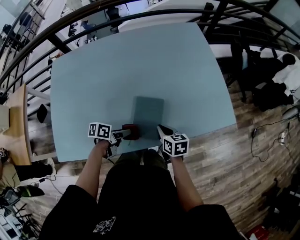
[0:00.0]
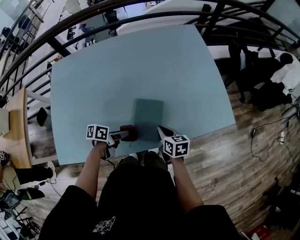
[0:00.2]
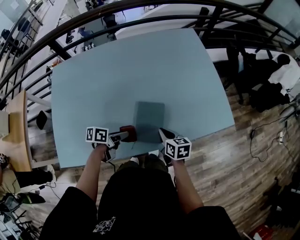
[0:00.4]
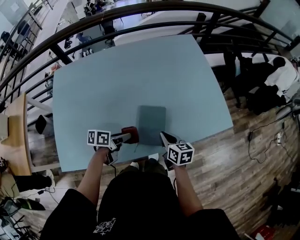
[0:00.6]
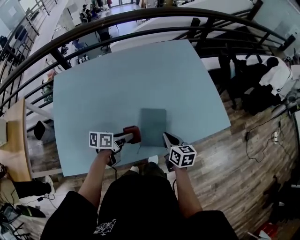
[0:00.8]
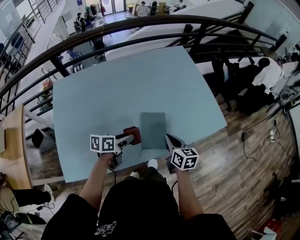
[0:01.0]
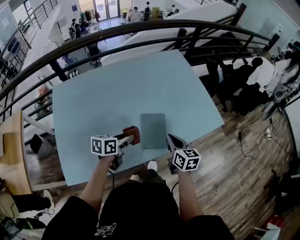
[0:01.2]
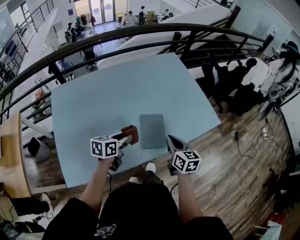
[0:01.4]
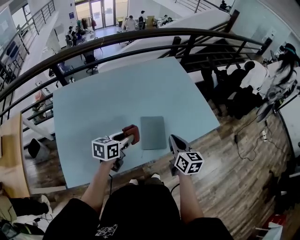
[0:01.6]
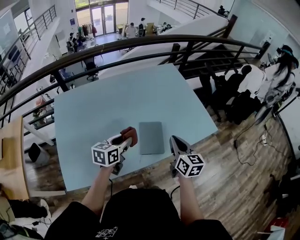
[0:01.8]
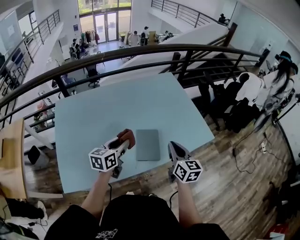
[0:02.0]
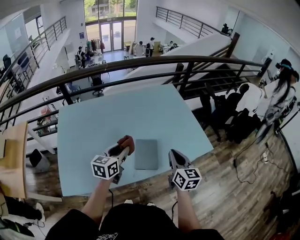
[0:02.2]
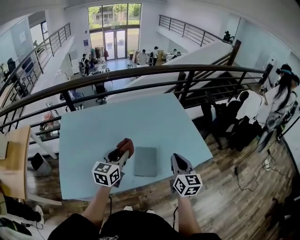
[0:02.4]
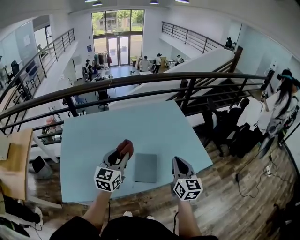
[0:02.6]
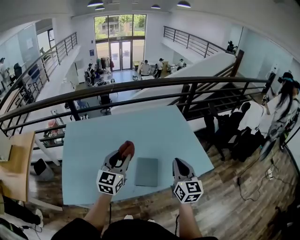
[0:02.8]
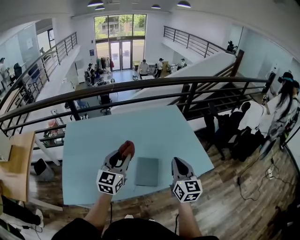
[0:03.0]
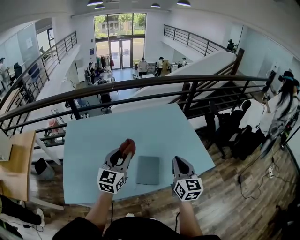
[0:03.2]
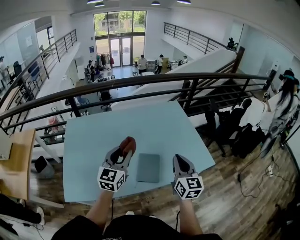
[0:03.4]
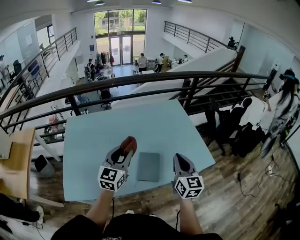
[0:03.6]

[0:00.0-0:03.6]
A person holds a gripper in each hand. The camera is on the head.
0:00.0 to 0:01.8: The two grippers go about 20 cm upward. The left gripper turns by about 50 degrees. Meanwhile the right gripper changes its angle by some 40 degrees.
0:01.8 to 0:03.6: The grippers both shift upward by roughly 15 cm. The left gripper changes its angle by approximately 40 degrees.

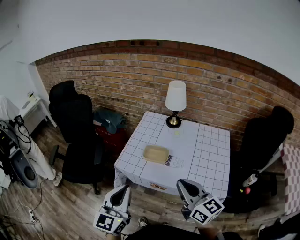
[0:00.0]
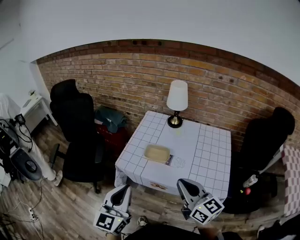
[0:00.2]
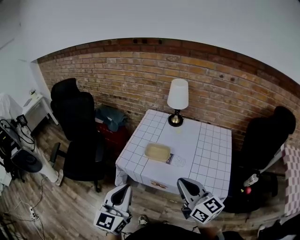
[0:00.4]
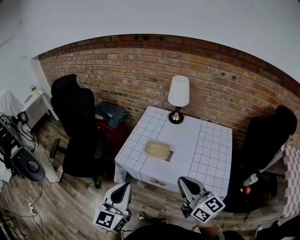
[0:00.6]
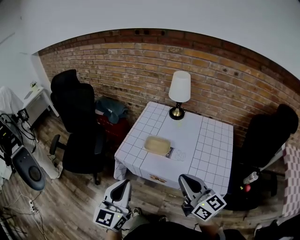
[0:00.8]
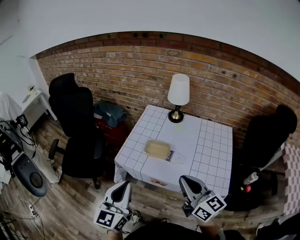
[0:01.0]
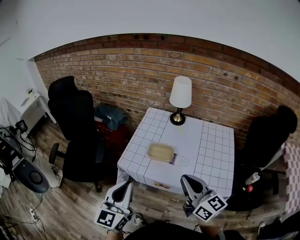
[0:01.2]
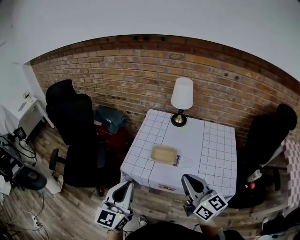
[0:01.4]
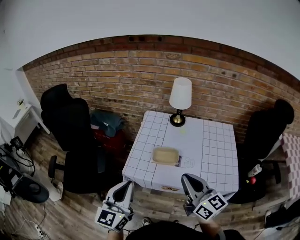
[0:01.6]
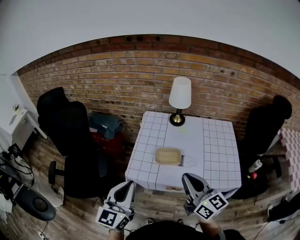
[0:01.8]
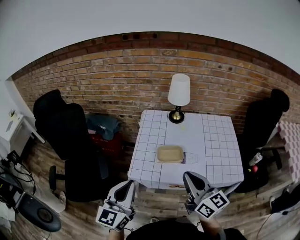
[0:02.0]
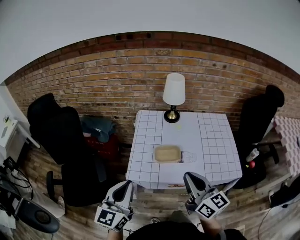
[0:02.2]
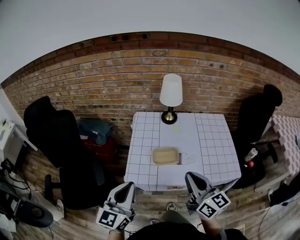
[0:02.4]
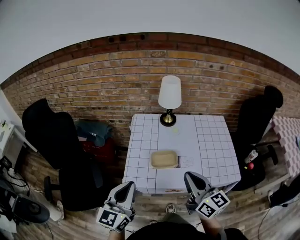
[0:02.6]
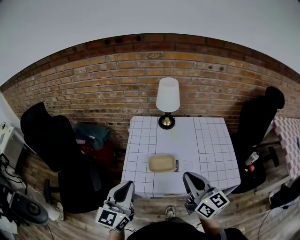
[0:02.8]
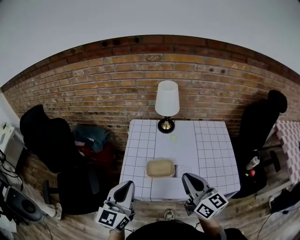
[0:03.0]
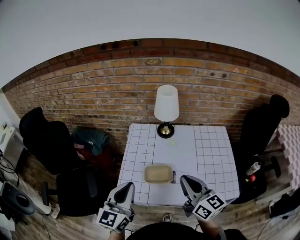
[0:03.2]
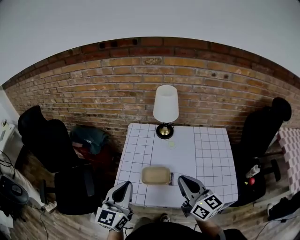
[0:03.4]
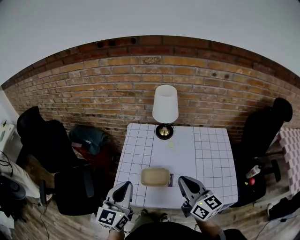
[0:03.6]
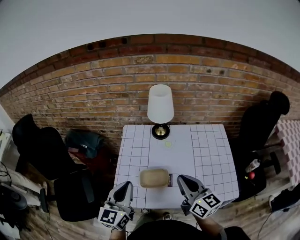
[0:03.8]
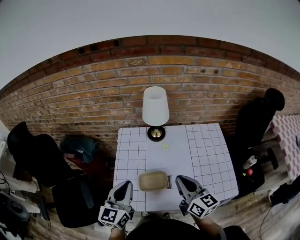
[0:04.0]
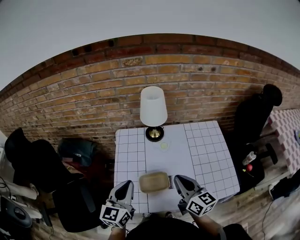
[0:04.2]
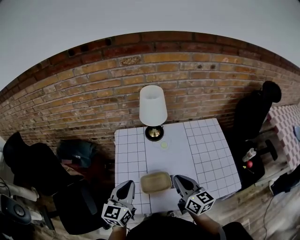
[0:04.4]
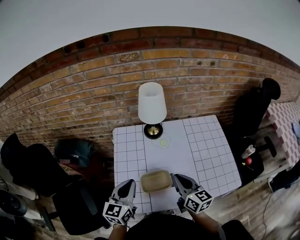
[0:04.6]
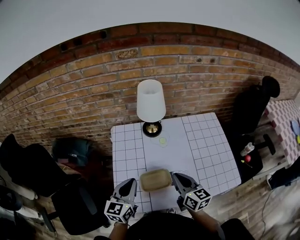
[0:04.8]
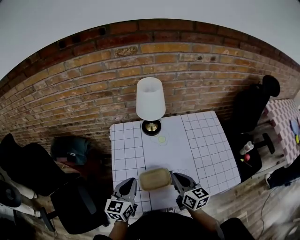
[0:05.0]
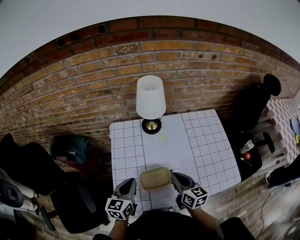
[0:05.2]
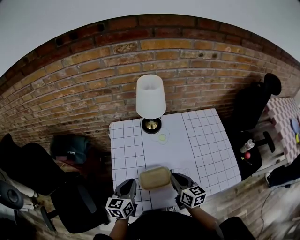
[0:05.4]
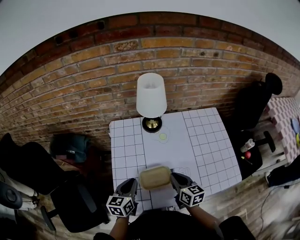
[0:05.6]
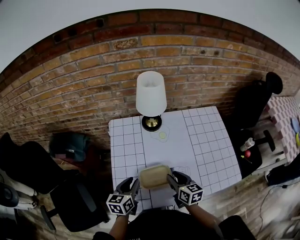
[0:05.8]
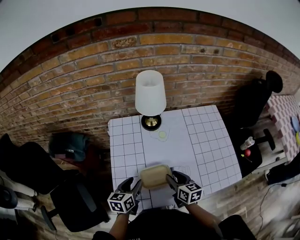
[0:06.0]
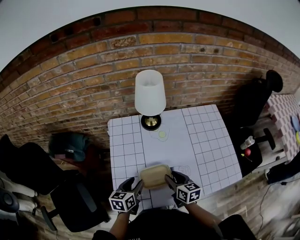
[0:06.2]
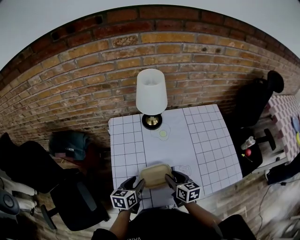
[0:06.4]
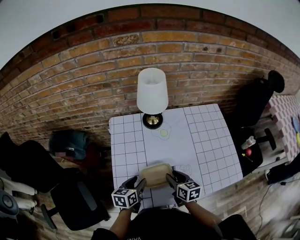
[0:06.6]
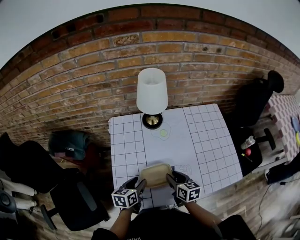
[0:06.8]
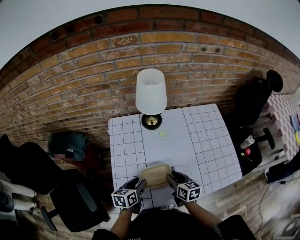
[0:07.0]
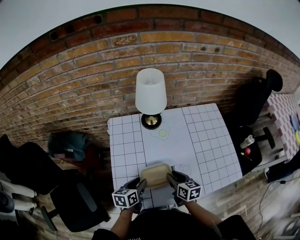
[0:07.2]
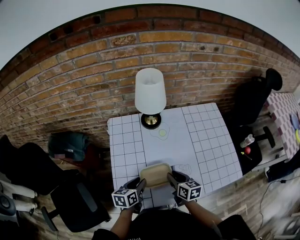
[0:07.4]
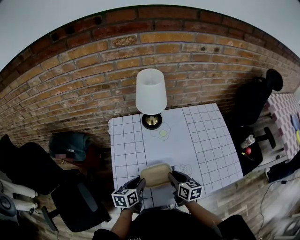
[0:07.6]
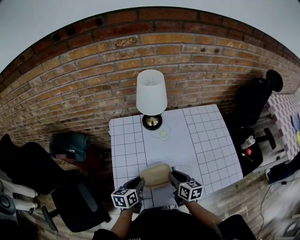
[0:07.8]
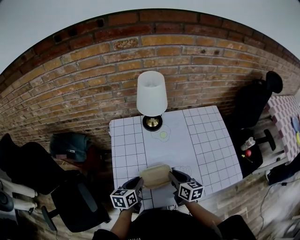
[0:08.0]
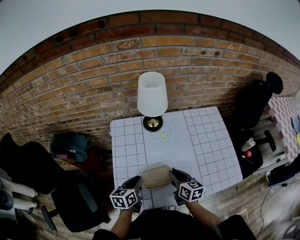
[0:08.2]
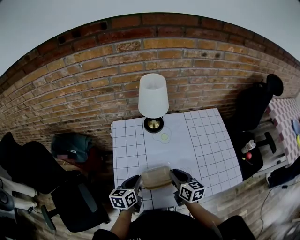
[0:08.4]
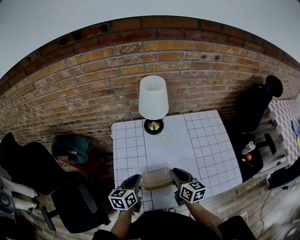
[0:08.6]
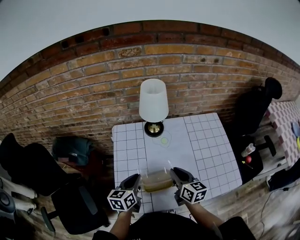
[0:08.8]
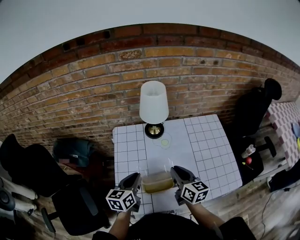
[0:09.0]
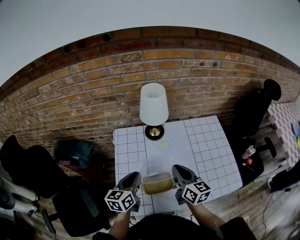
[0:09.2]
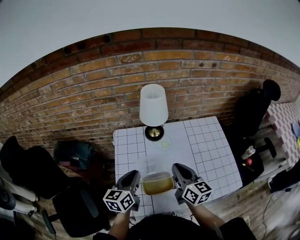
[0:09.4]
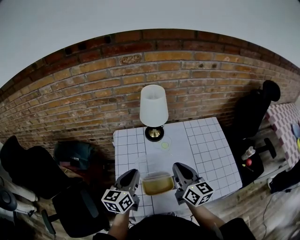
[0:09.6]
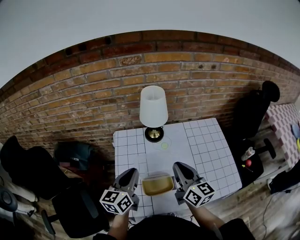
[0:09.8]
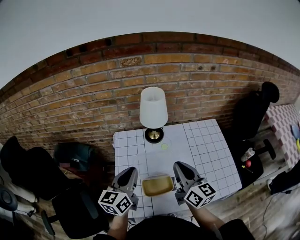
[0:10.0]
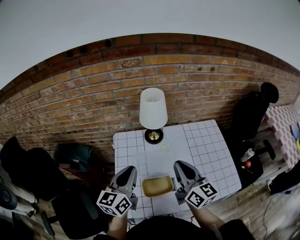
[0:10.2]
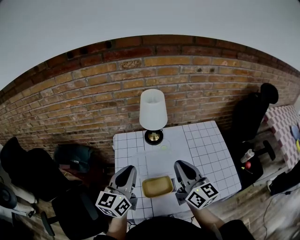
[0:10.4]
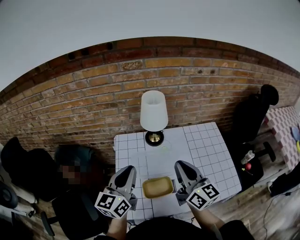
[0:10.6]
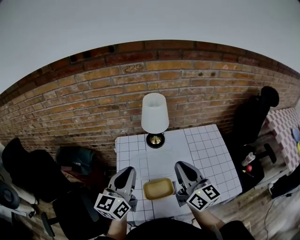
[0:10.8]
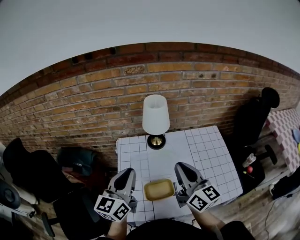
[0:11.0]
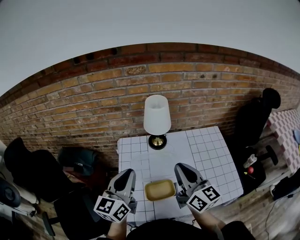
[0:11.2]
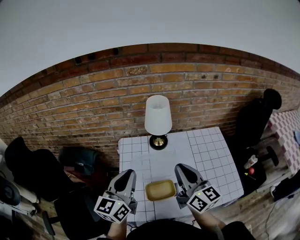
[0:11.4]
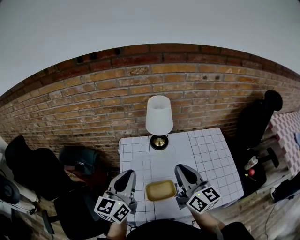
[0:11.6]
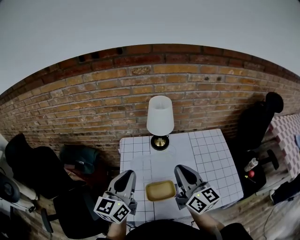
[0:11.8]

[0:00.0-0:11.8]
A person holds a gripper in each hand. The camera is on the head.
0:00.0 to 0:01.4: The right gripper moves approximately 5 cm, while the left gripper heads forward and to the left, covering approximately 10 cm.
0:01.4 to 0:03.0: Both grippers travel together forward, some 10 cm.
0:03.0 to 0:04.4: The grippers both shift forward and downward by about 15 cm.
0:04.4 to 0:06.0: The grippers both shift downward by roughly 15 cm. The left gripper swivels approximately 30 degrees, and opens its fingers. Meanwhile the right gripper swivels some 20 degrees, and opens.
0:06.0 to 0:07.4: The grippers stay close to where they were, moving slightly.
0:07.4 to 0:08.8: The two grippers go about 10 cm upward. The left gripper closes.
0:08.8 to 0:10.4: Both grippers travel together upward, about 15 cm. The left gripper changes its angle by some 30 degrees, while the right gripper rotates some 20 degrees.
0:10.4 to 0:11.8: The grippers make only small movements.

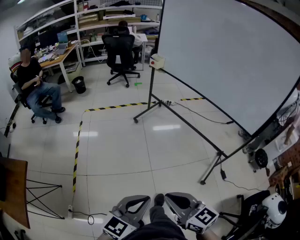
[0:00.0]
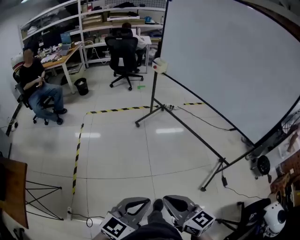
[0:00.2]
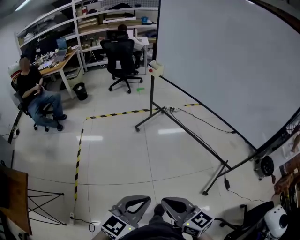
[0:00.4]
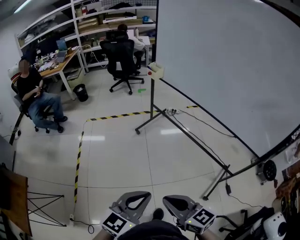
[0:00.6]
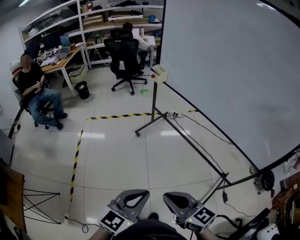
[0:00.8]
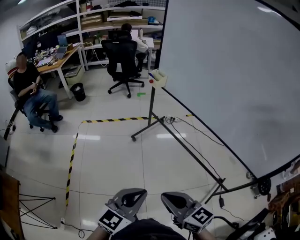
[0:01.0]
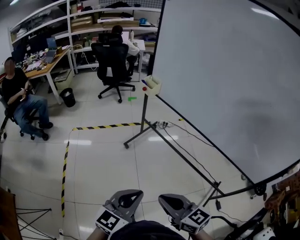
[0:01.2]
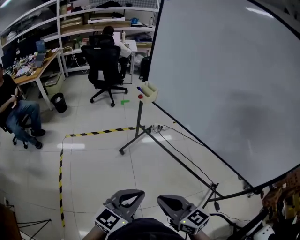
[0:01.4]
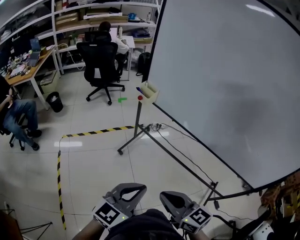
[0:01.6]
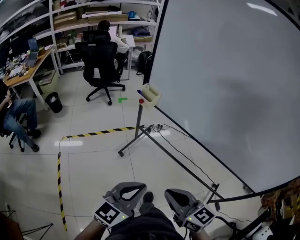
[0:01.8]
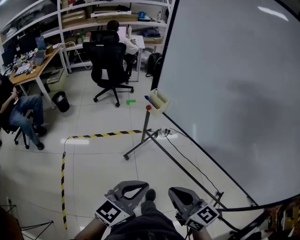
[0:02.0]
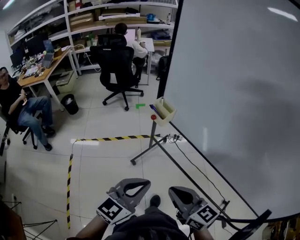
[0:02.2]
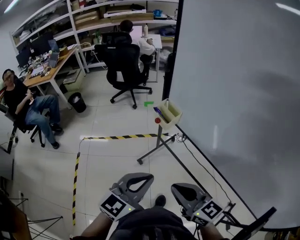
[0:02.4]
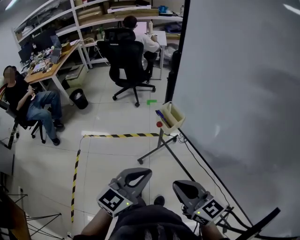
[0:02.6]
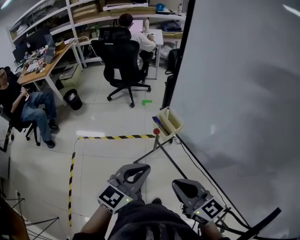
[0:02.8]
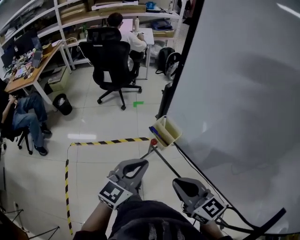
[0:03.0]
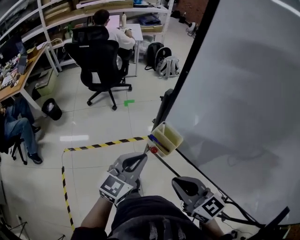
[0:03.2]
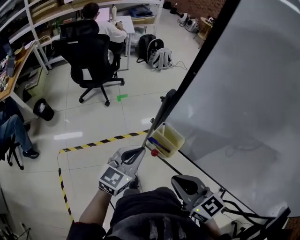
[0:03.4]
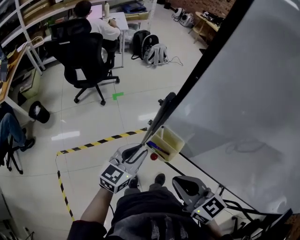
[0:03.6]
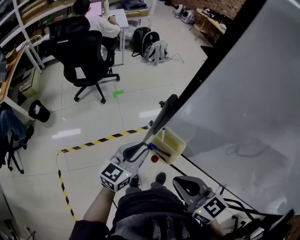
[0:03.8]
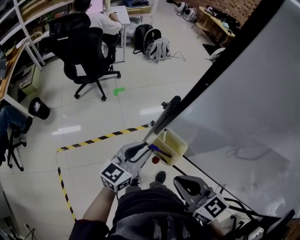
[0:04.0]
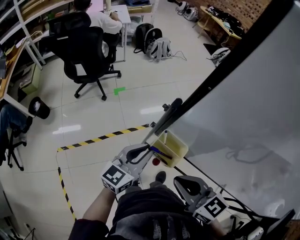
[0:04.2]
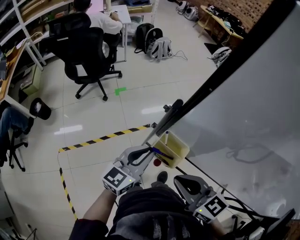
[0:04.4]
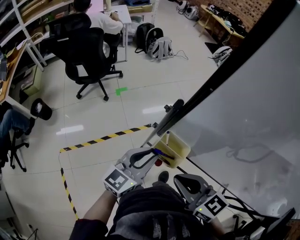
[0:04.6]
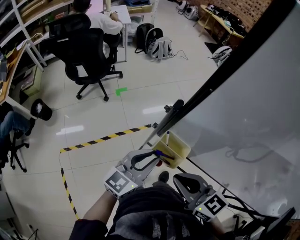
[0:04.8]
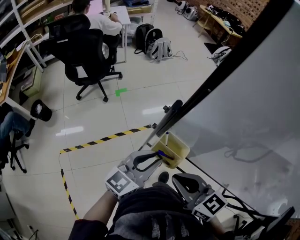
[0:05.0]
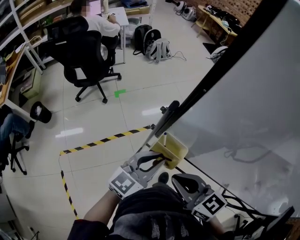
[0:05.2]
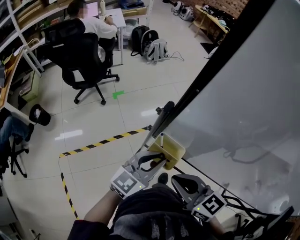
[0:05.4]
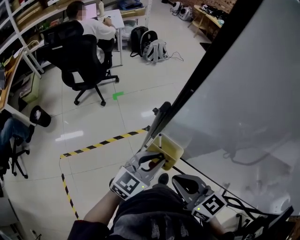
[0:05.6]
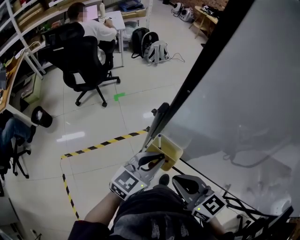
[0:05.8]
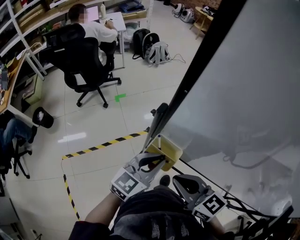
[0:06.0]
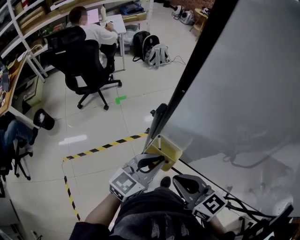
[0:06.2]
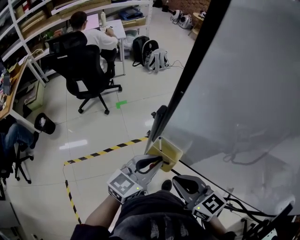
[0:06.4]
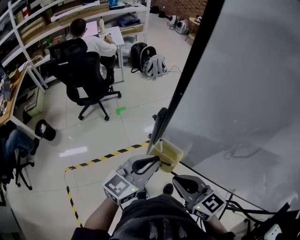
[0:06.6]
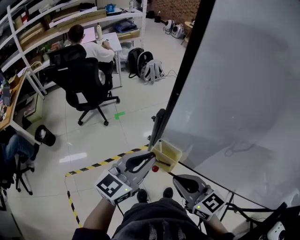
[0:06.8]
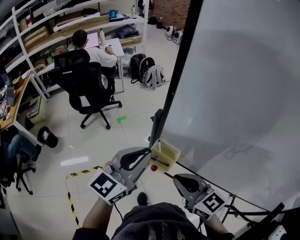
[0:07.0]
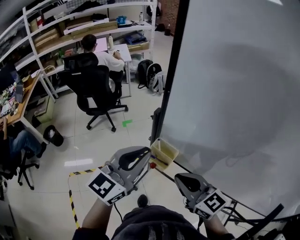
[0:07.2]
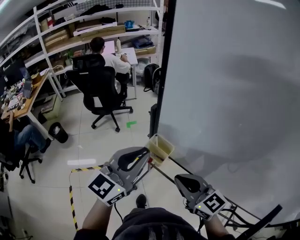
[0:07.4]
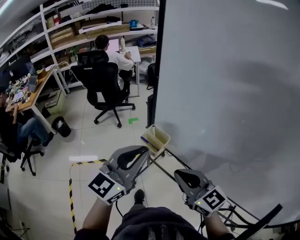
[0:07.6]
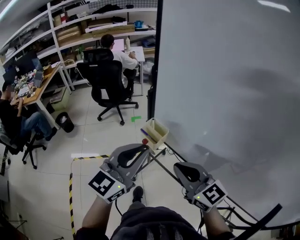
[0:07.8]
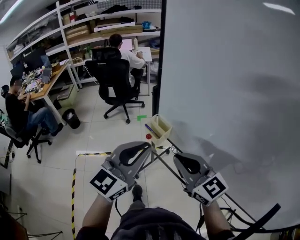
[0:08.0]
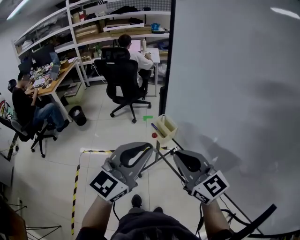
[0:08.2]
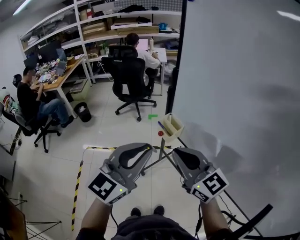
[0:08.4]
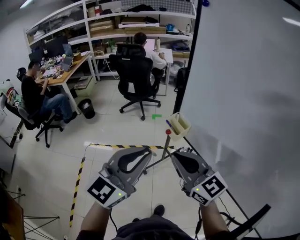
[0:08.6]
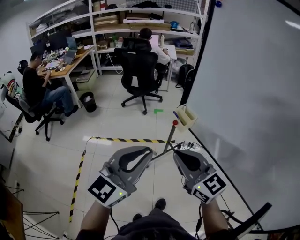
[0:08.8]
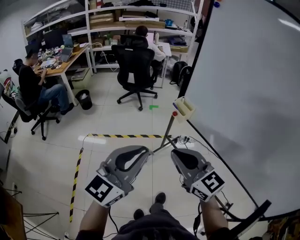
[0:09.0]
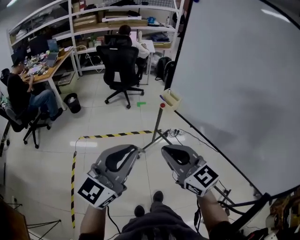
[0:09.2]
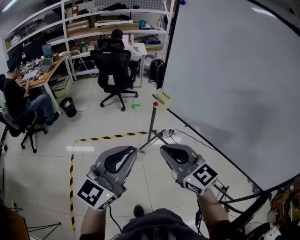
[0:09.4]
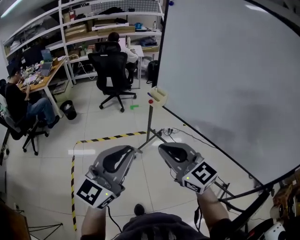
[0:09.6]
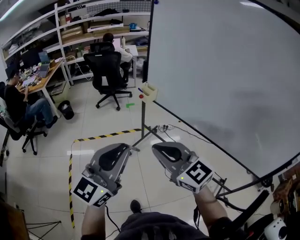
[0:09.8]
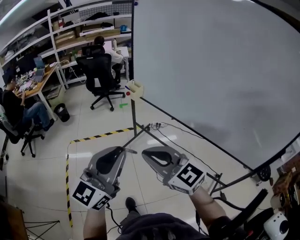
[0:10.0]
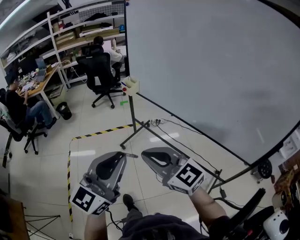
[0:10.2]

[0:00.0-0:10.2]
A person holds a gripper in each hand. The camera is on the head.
0:00.0 to 0:01.4: The two grippers travel together, forward, roughly 40 cm.
0:01.4 to 0:03.0: The pair of grippers is taken forward, about 50 cm.
0:03.0 to 0:04.4: The grippers both shift forward by approximately 15 cm.
0:04.4 to 0:05.8: The left gripper moves to the right, about 5 cm.
0:05.8 to 0:07.2: The right gripper shifts some 5 cm upward. The left gripper travels upward by about 15 cm, and turns by some 20 degrees.
0:07.2 to 0:08.8: The right gripper is displaced backward by about 20 cm, and turns by roughly 20 degrees. Meanwhile the left gripper travels backward by roughly 30 cm, and rotates approximately 20 degrees.
0:08.8 to 0:10.2: The grippers both shift backward by about 35 cm.
